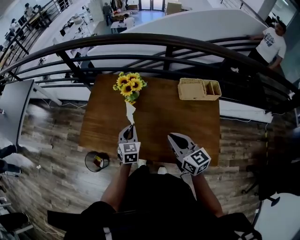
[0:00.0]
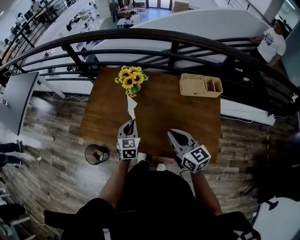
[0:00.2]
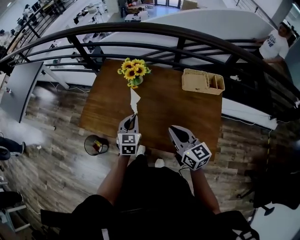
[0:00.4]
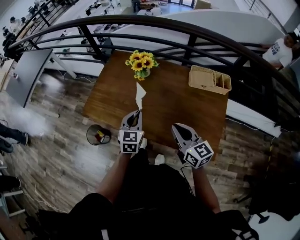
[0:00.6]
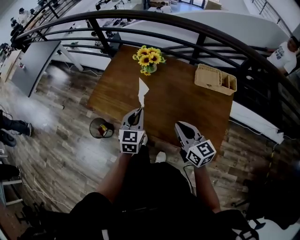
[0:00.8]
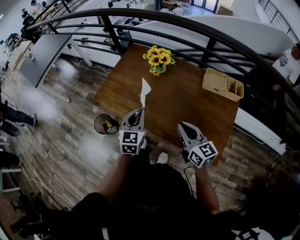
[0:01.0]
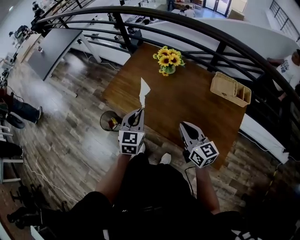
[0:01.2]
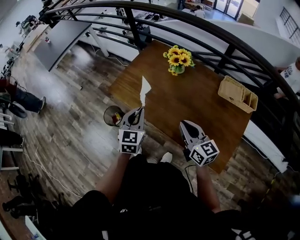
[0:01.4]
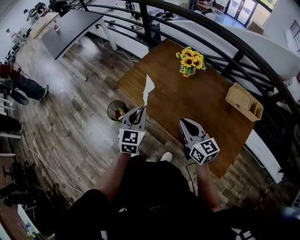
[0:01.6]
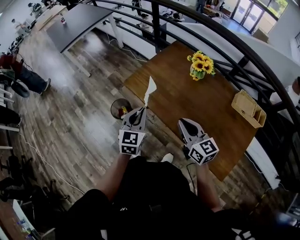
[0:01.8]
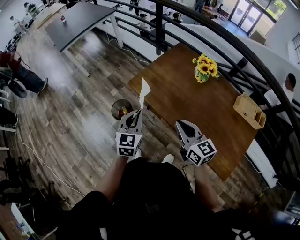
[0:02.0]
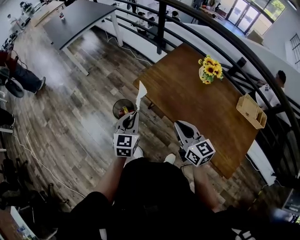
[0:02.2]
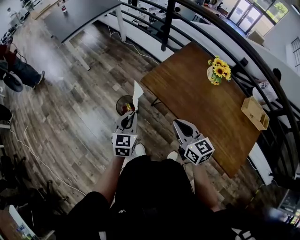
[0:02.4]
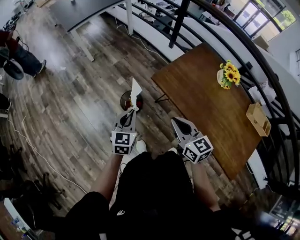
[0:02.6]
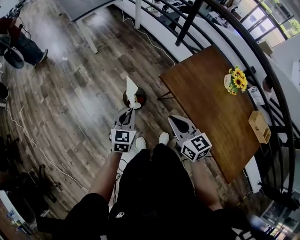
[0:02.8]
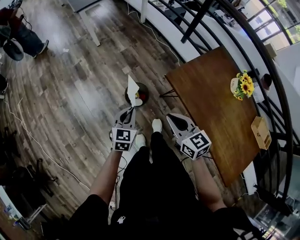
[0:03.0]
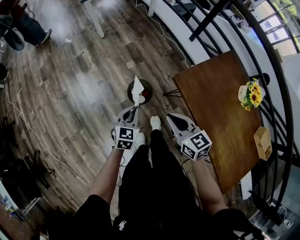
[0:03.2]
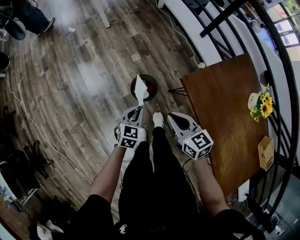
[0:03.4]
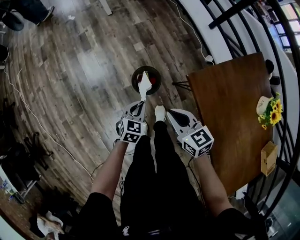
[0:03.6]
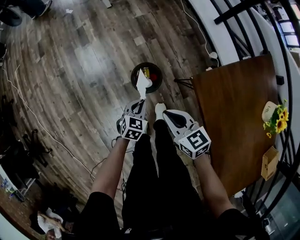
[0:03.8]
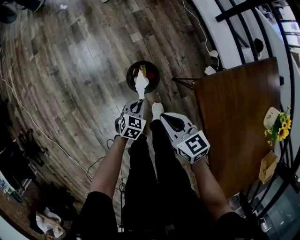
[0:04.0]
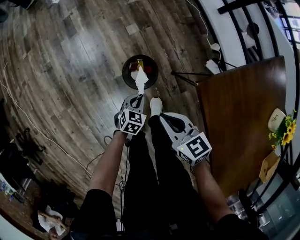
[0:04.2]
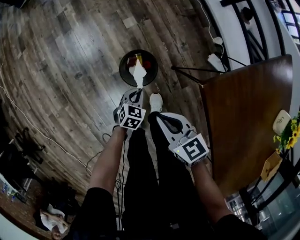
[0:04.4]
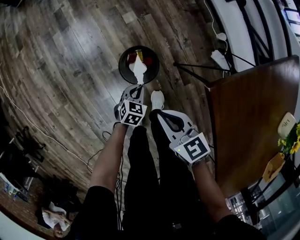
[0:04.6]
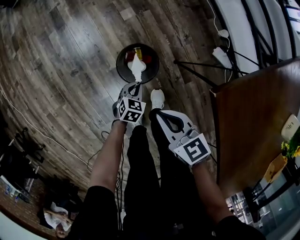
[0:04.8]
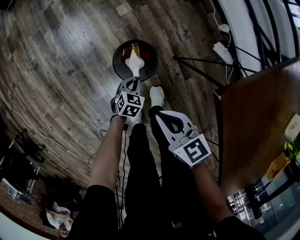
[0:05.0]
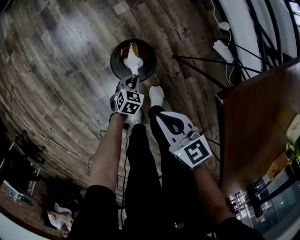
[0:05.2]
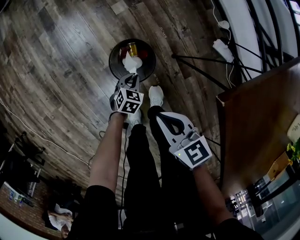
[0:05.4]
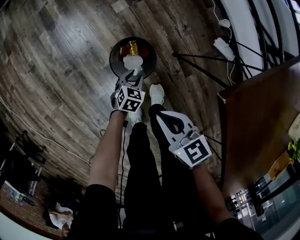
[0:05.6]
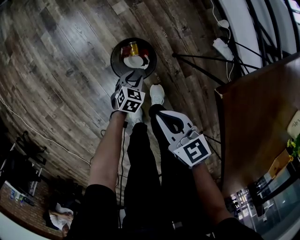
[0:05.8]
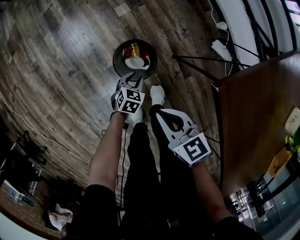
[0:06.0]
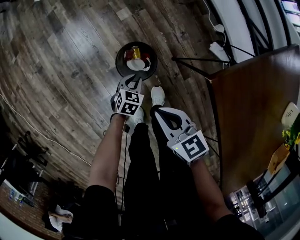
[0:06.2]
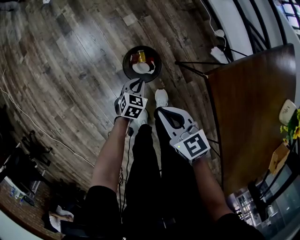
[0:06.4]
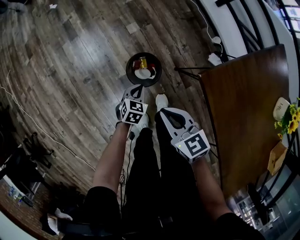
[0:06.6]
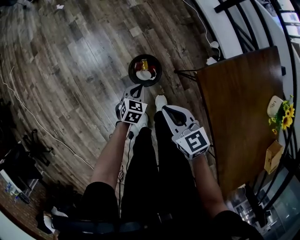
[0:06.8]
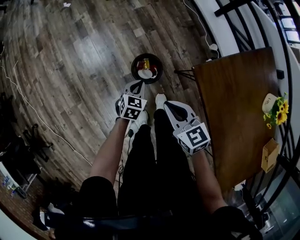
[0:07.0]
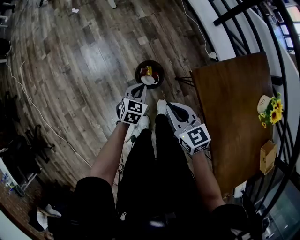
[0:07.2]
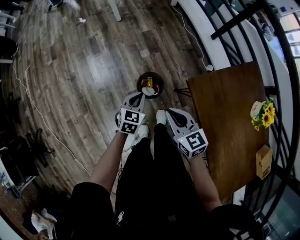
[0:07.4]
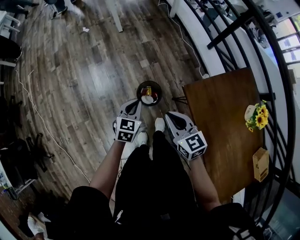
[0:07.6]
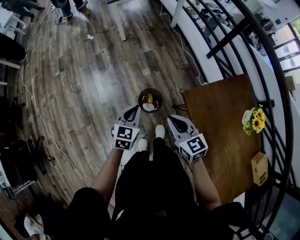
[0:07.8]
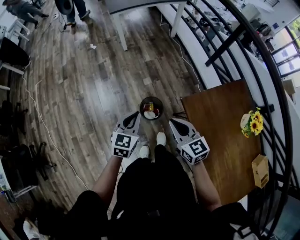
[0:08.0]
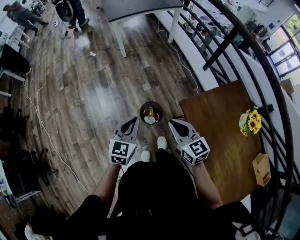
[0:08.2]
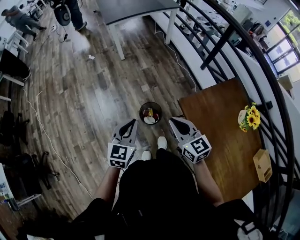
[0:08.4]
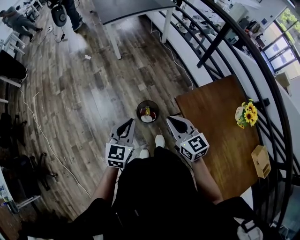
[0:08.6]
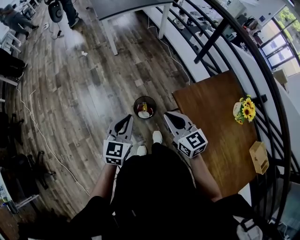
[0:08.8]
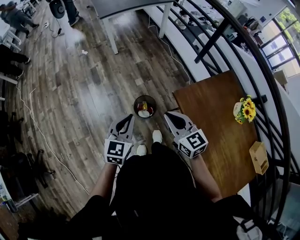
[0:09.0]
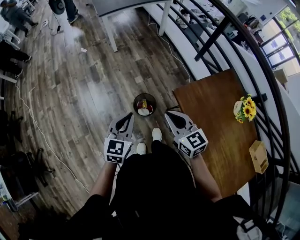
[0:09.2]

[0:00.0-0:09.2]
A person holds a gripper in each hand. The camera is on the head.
0:00.0 to 0:01.6: The right gripper shifts roughly 10 cm to the left, and swivels about 30 degrees; the left gripper goes approximately 20 cm backward, to the left and upward, and swivels about 20 degrees.
0:01.6 to 0:03.0: The left gripper moves to the left, some 40 cm. Meanwhile the right gripper goes about 40 cm to the left and forward, and changes its angle by some 30 degrees.
0:03.0 to 0:04.6: The right gripper goes approximately 35 cm downward and forward, and changes its angle by approximately 20 degrees, while the left gripper heads downward, covering some 50 cm, and swivels roughly 30 degrees.
0:04.6 to 0:06.2: The left gripper travels downward and back again, approximately 10 cm each way.
0:06.2 to 0:07.6: The right gripper moves upward, approximately 30 cm; the left gripper travels upward by roughly 40 cm, and swivels approximately 30 degrees.
0:07.6 to 0:09.2: The right gripper moves upward, about 10 cm. Meanwhile the left gripper goes roughly 20 cm upward and backward.

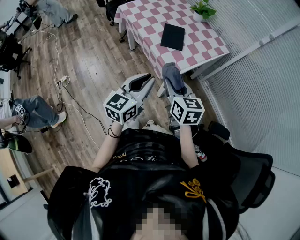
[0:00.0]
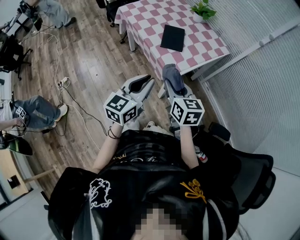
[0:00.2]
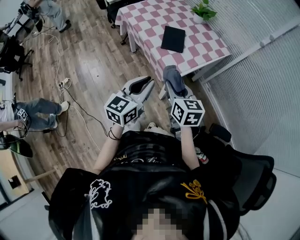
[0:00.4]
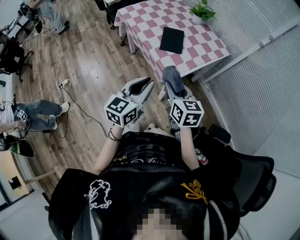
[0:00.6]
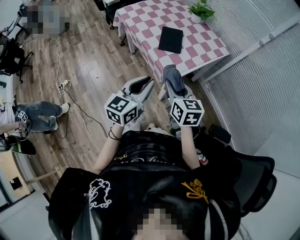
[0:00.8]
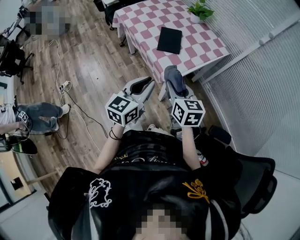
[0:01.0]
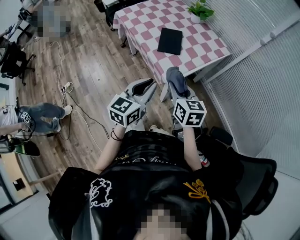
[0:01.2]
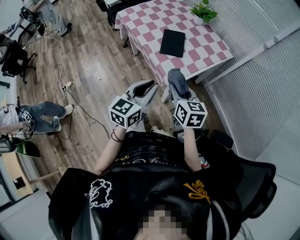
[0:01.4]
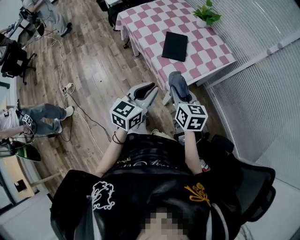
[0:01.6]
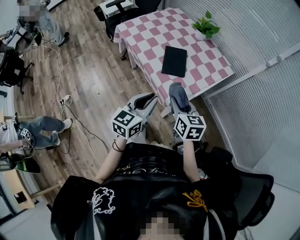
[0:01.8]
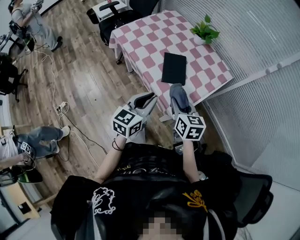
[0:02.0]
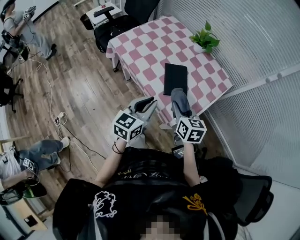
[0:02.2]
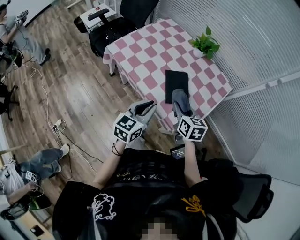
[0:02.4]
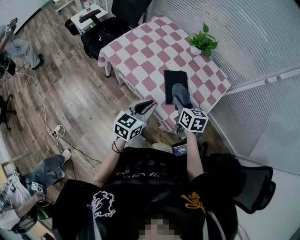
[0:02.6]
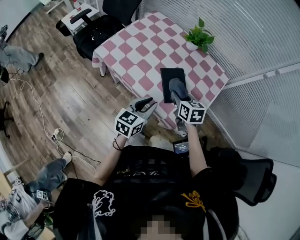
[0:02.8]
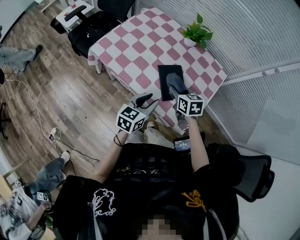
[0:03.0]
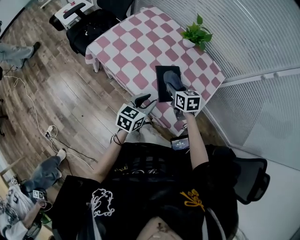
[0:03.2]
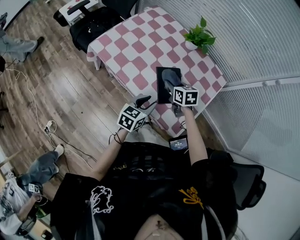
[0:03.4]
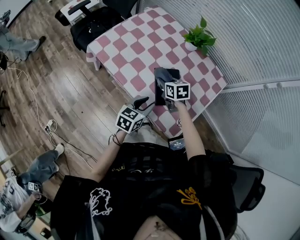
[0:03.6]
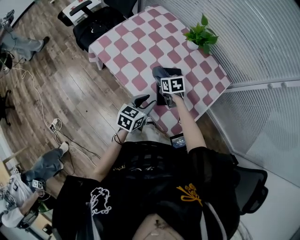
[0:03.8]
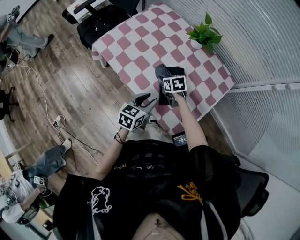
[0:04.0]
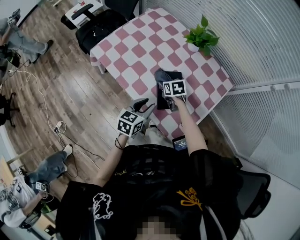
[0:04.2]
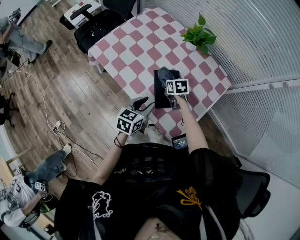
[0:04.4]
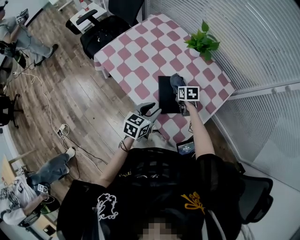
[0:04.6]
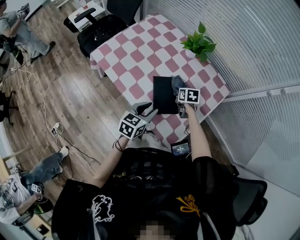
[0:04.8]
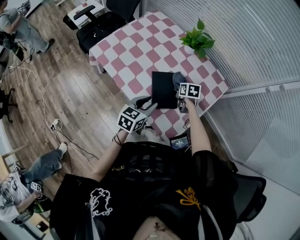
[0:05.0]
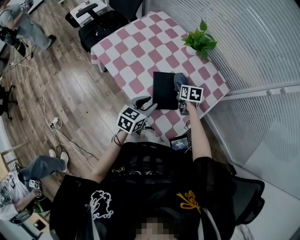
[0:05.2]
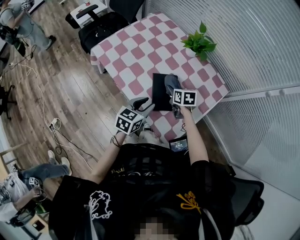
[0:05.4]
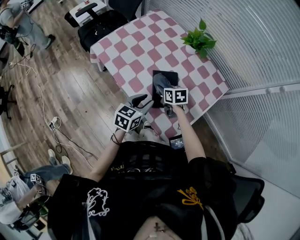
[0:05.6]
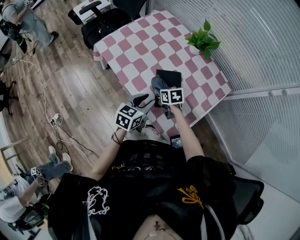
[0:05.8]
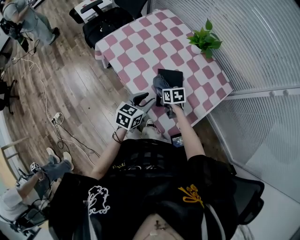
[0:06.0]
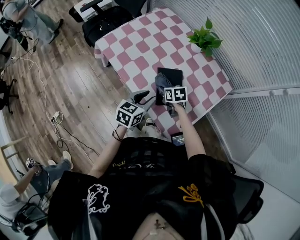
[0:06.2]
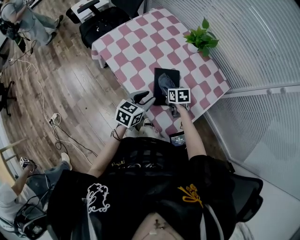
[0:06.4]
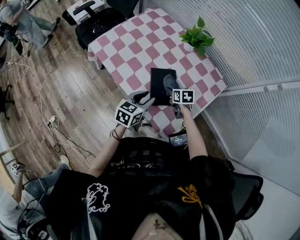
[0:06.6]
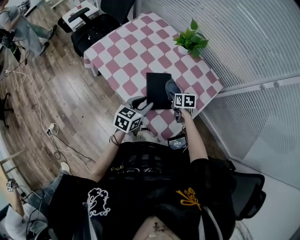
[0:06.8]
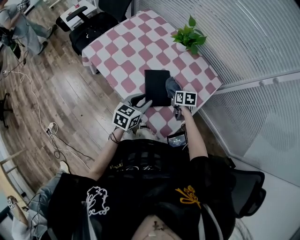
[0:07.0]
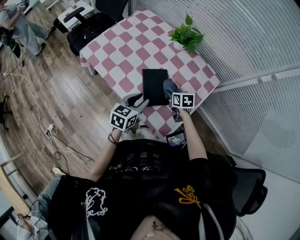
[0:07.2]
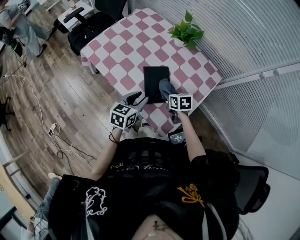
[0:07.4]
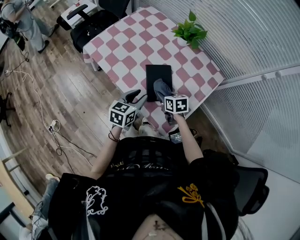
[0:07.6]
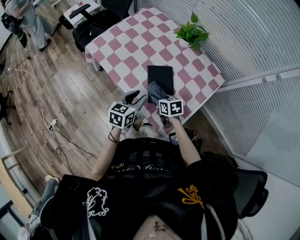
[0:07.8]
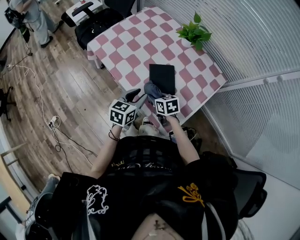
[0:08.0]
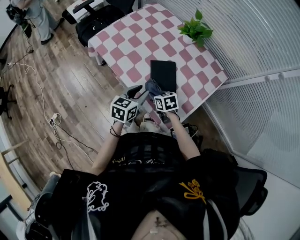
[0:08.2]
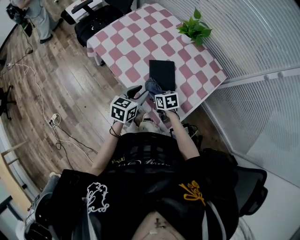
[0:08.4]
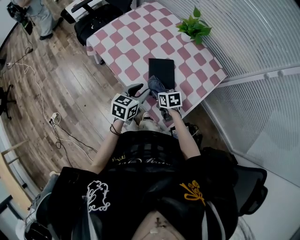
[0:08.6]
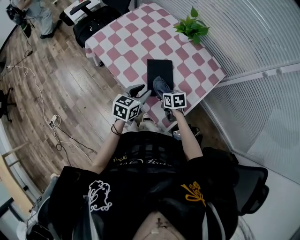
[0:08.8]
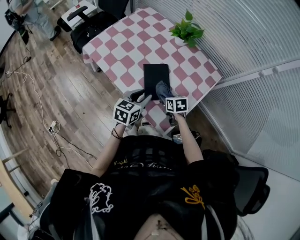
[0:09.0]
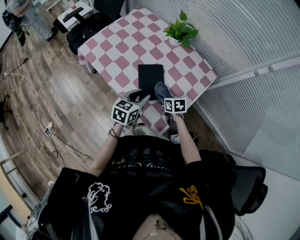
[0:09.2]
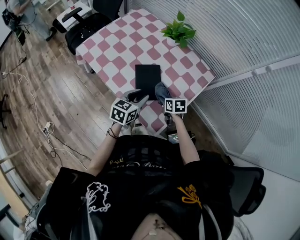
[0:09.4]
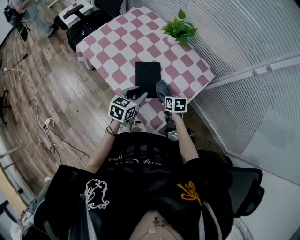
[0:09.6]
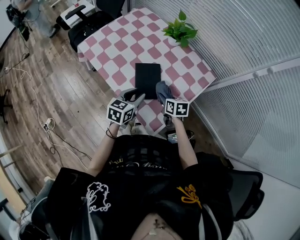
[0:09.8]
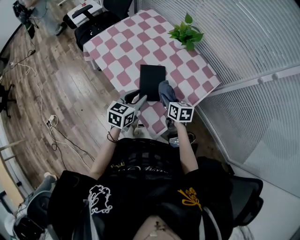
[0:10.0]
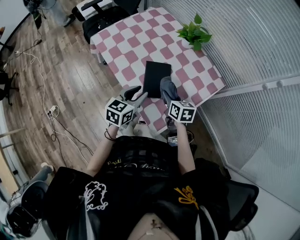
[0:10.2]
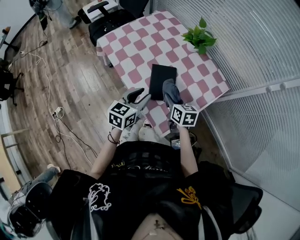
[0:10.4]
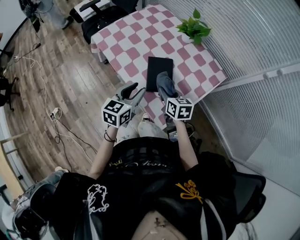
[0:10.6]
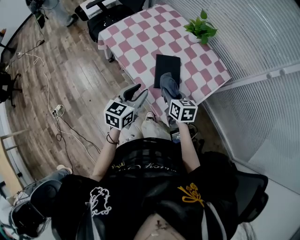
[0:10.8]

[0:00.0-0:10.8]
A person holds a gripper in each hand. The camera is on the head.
0:00.0 to 0:01.6: Both grippers move forward, about 5 cm.
0:01.6 to 0:03.0: Both grippers travel together forward and to the left, approximately 30 cm. The left gripper rotates roughly 30 degrees.
0:03.0 to 0:04.6: The right gripper travels downward, forward and to the right by some 20 cm, while the left gripper moves to the right, some 5 cm.
0:04.6 to 0:06.2: The right gripper travels to the left and backward by about 10 cm.
0:06.2 to 0:07.8: The right gripper moves backward, roughly 5 cm, and goes to the right and returns, approximately 15 cm each way.
0:07.8 to 0:09.2: The grippers both shift to the right by some 10 cm.
0:09.2 to 0:10.8: The left gripper heads backward, to the left and upward, covering roughly 15 cm. The right gripper goes roughly 15 cm upward, to the left and backward.

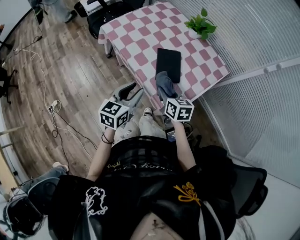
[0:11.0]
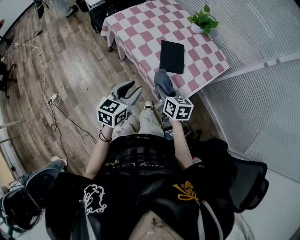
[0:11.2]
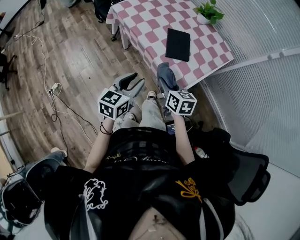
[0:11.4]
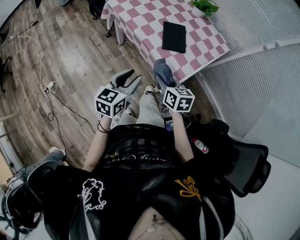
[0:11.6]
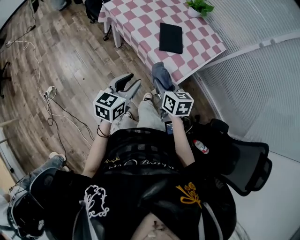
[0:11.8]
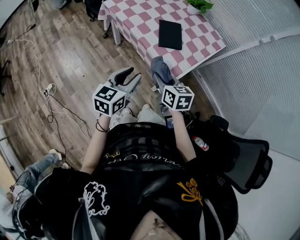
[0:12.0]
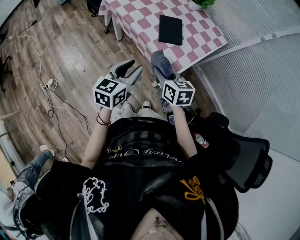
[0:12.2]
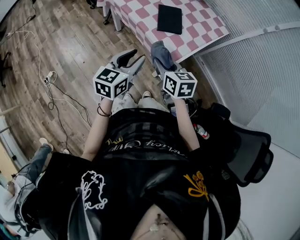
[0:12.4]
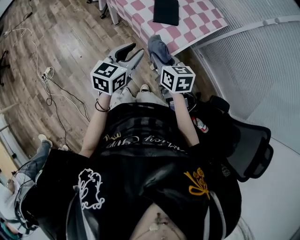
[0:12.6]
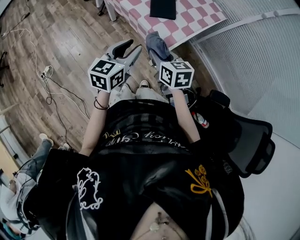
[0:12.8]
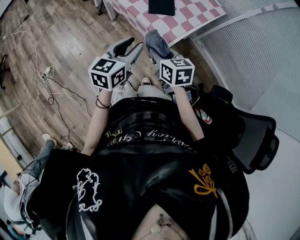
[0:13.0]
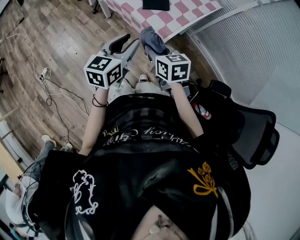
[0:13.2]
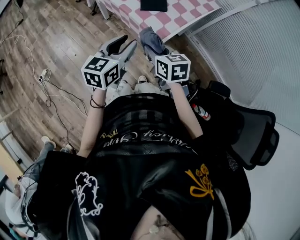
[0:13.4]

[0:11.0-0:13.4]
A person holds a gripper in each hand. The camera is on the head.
0:11.0 to 0:12.2: Both grippers travel together backward, approximately 15 cm.
0:12.2 to 0:13.4: The right gripper changes place by approximately 5 cm. The left gripper travels to the right by roughly 5 cm.

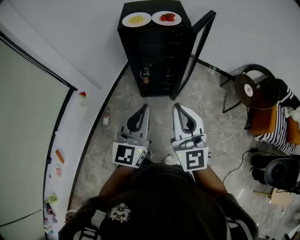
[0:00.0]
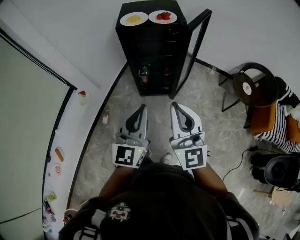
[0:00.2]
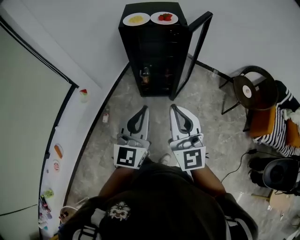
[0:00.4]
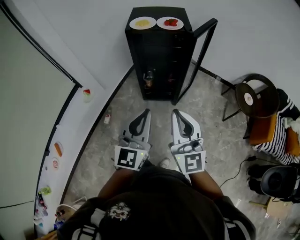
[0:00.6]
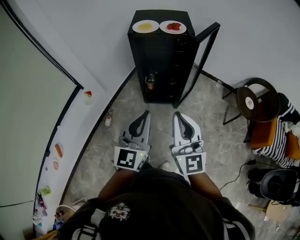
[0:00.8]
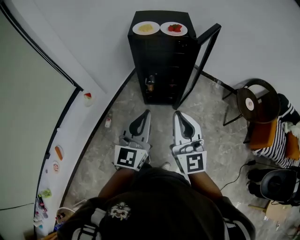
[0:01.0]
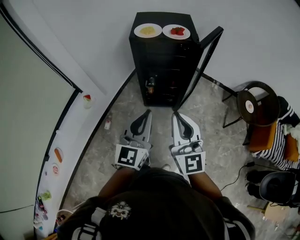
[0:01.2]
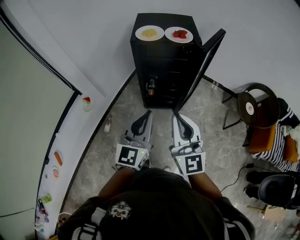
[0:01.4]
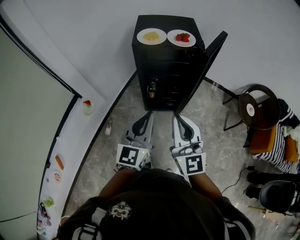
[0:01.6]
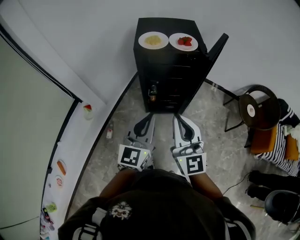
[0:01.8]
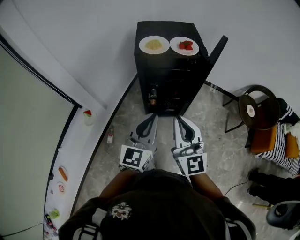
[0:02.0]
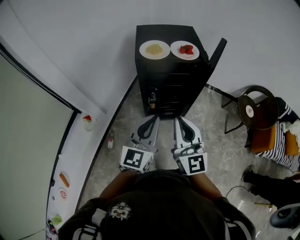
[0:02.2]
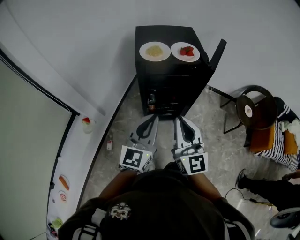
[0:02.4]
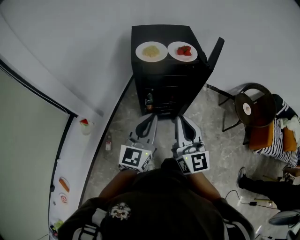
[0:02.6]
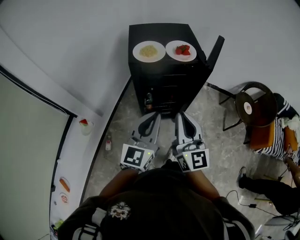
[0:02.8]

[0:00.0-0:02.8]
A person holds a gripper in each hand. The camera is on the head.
0:01.4 to 0:02.8: Both grippers travel together forward, some 15 cm.
